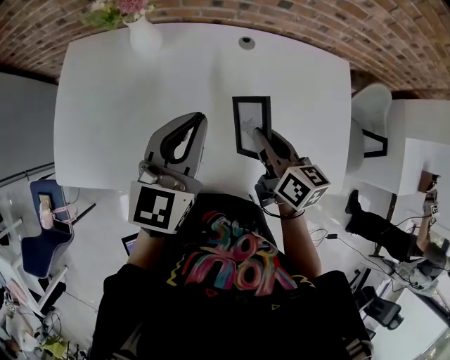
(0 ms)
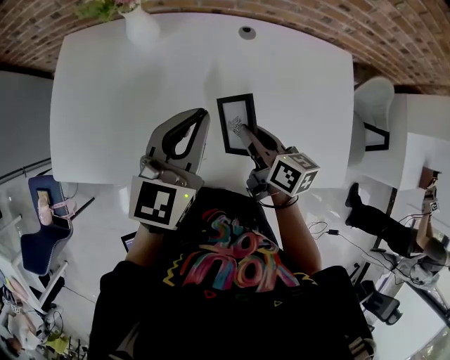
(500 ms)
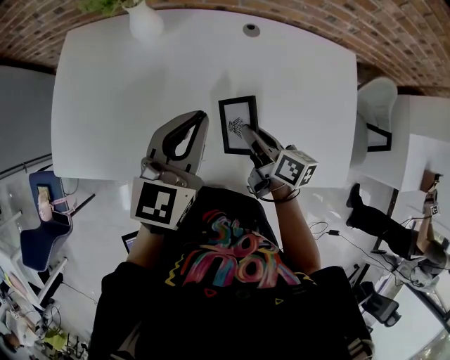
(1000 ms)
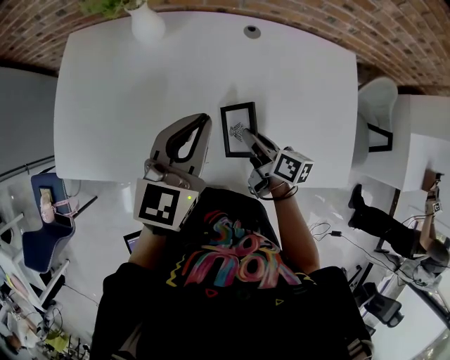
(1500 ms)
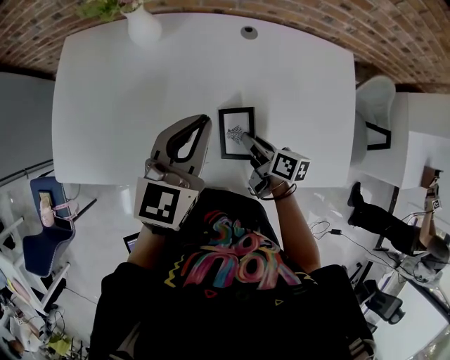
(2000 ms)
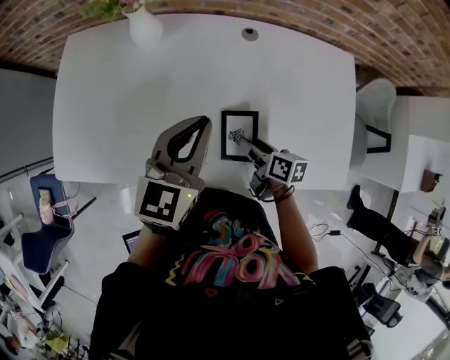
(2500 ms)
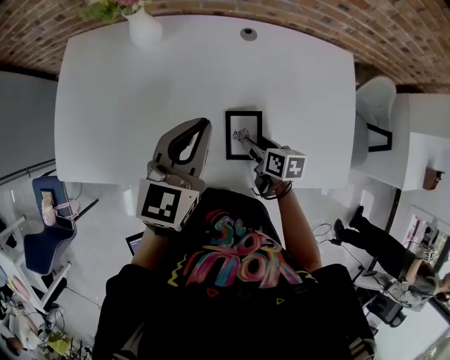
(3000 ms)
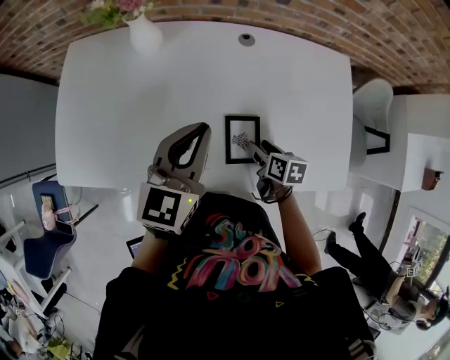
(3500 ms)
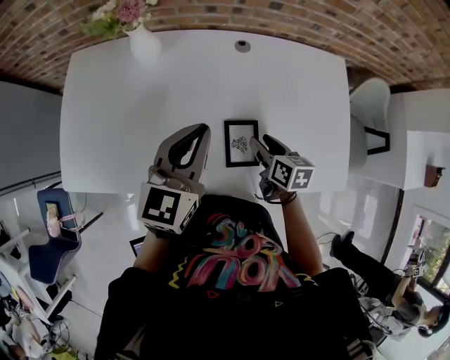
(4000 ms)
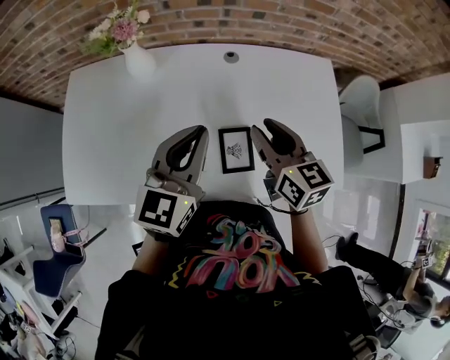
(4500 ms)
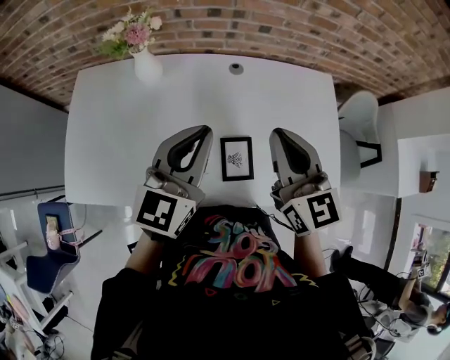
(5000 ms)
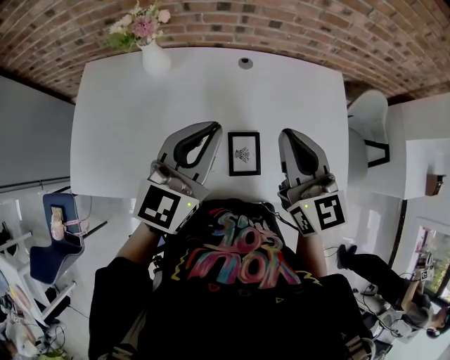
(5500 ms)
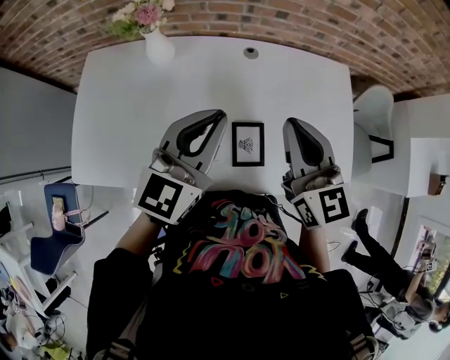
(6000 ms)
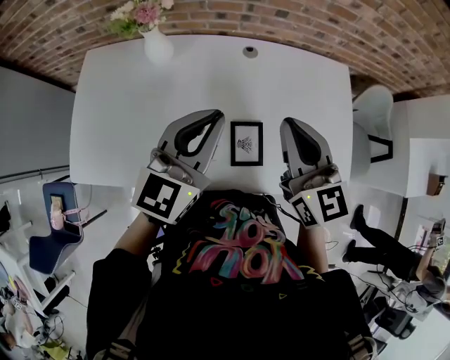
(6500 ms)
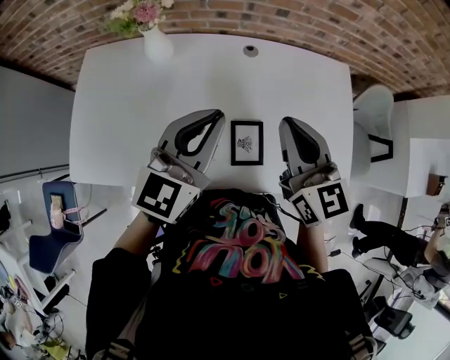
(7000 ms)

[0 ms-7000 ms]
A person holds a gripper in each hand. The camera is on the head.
0 ms to 2000 ms: The right gripper shifts about 15 cm downward, and changes its angle by about 20 degrees.
2000 ms to 3500 ms: The right gripper shifts by some 5 cm, turns by about 20 degrees, and opens.
3500 ms to 5000 ms: The left gripper heads upward, covering roughly 10 cm. Meanwhile the right gripper shifts some 35 cm upward, tilts its fingers roughly 40 degrees upward, and closes its fingers.
5000 ms to 7000 ms: The grippers stay close to where they were, moving slightly.

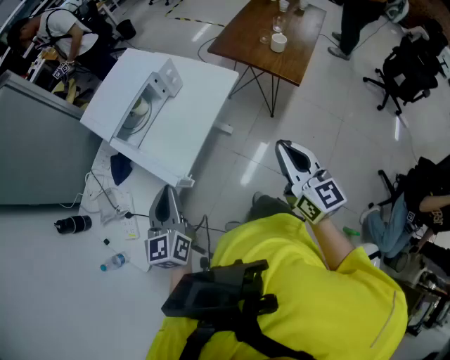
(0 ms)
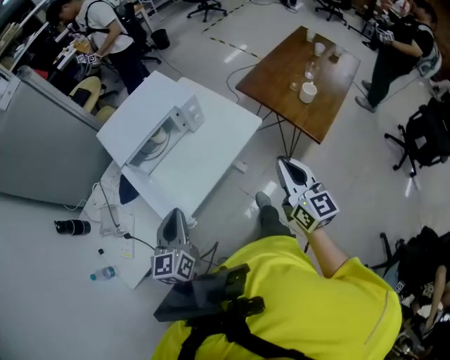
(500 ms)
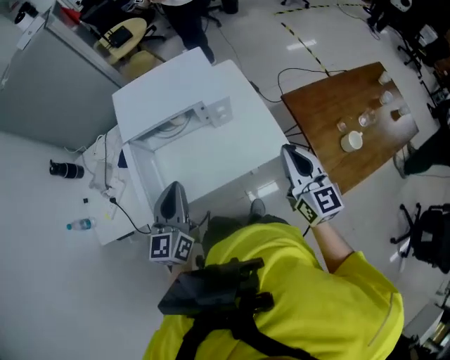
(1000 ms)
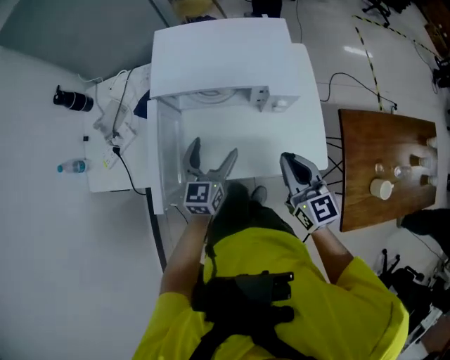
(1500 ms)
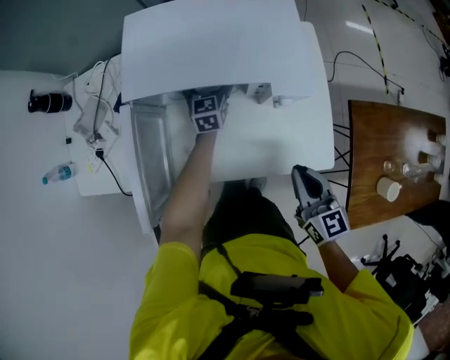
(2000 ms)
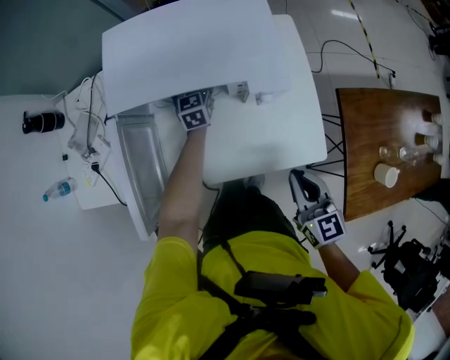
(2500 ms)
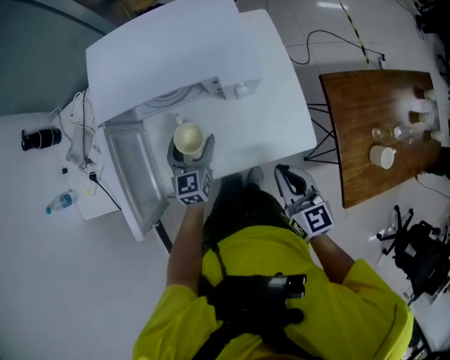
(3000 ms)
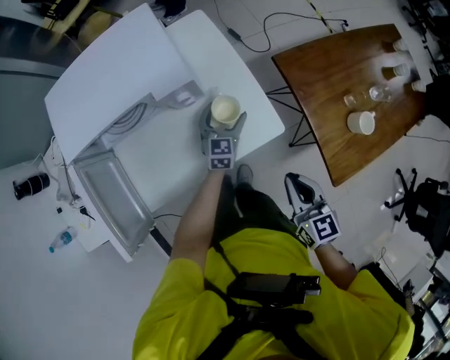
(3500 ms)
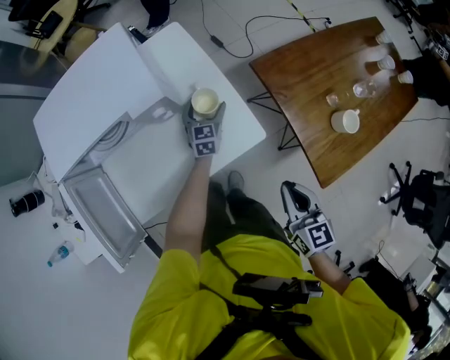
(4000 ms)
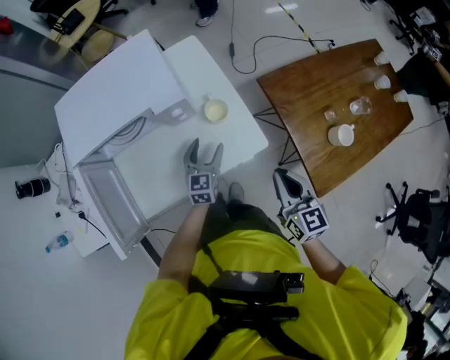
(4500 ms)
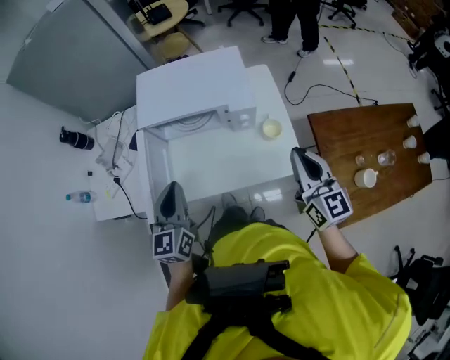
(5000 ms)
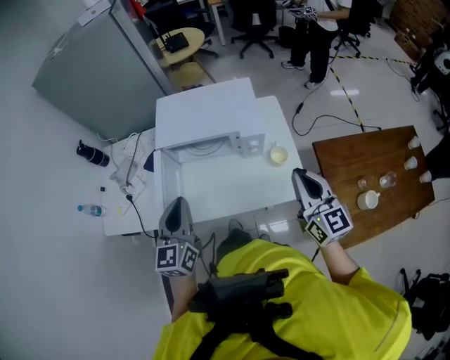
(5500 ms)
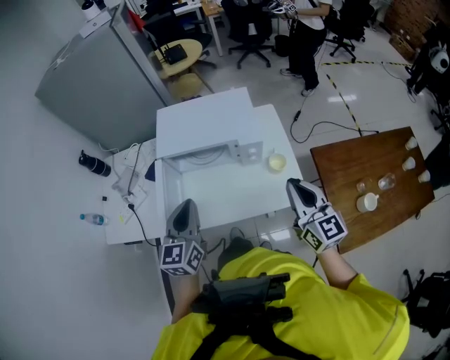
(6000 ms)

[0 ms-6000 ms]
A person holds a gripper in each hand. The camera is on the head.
0 ms to 2000 ms: Both grippers are carried approximately 50 cm. The right gripper changes its angle by some 60 degrees; the left gripper rotates approximately 50 degrees, and opens.
2000 ms to 4000 ms: The right gripper moves about 25 cm, and turns by approximately 30 degrees; the left gripper ends up some 35 cm from where it was, and changes its angle by some 30 degrees.
4000 ms to 6000 ms: The right gripper is displaced upward, to the left and forward by some 30 cm, and swivels roughly 40 degrees. The left gripper is displaced upward, to the left and backward by about 60 cm, swivels about 30 degrees, and closes its fingers.

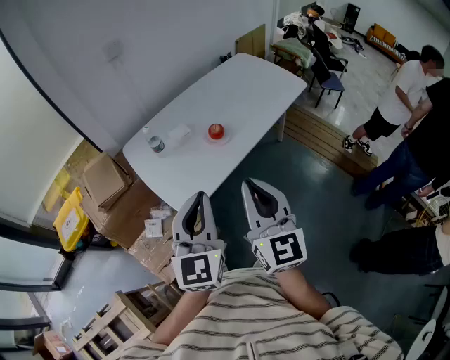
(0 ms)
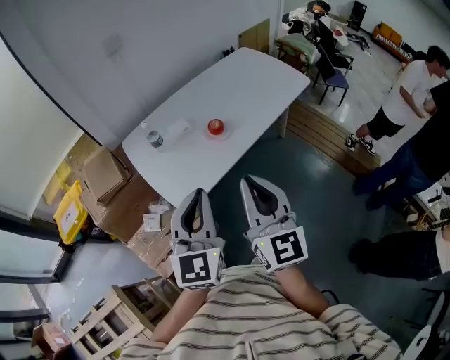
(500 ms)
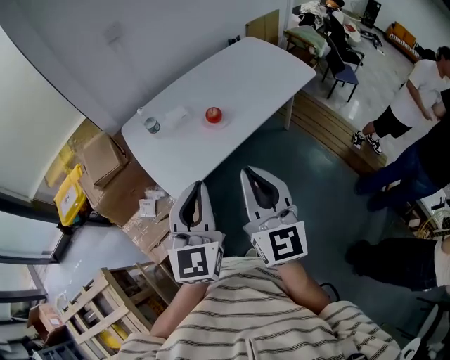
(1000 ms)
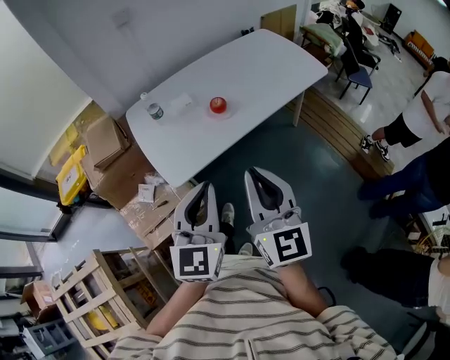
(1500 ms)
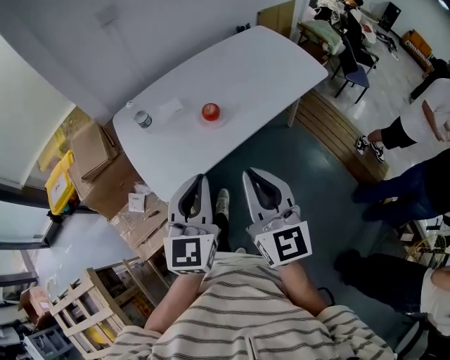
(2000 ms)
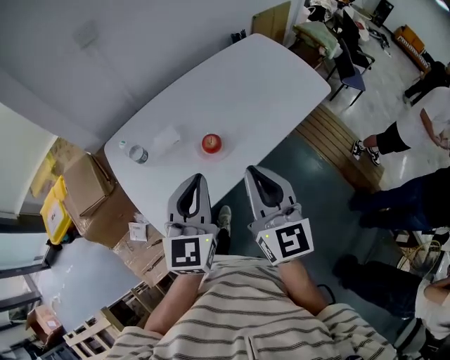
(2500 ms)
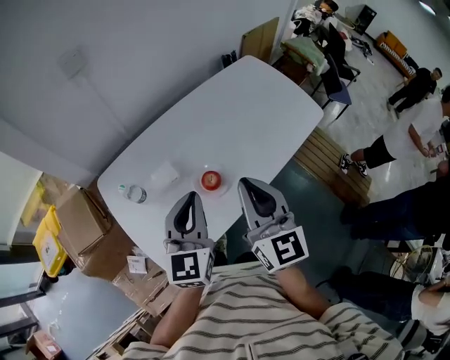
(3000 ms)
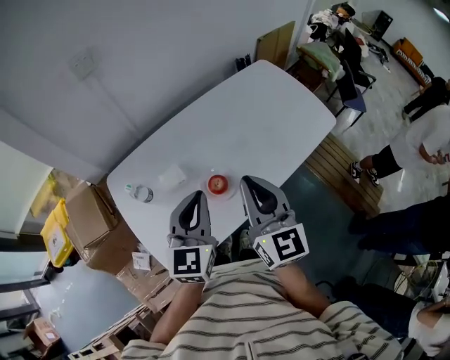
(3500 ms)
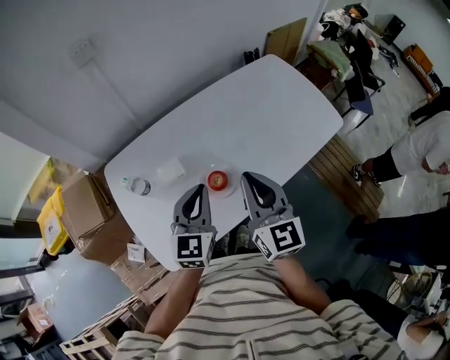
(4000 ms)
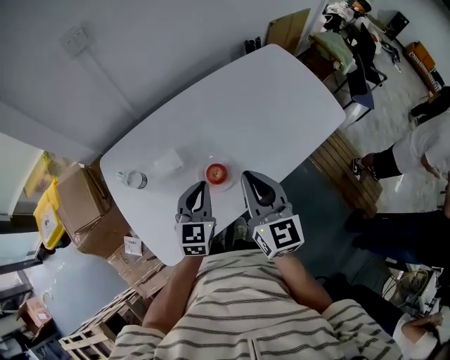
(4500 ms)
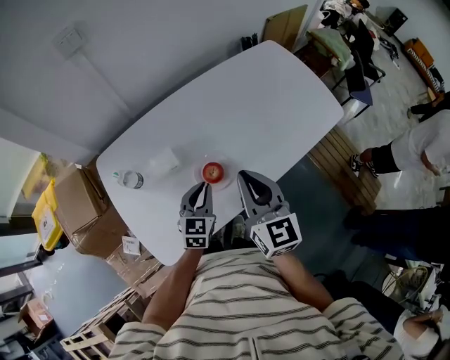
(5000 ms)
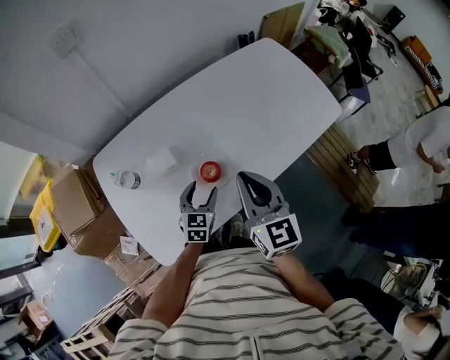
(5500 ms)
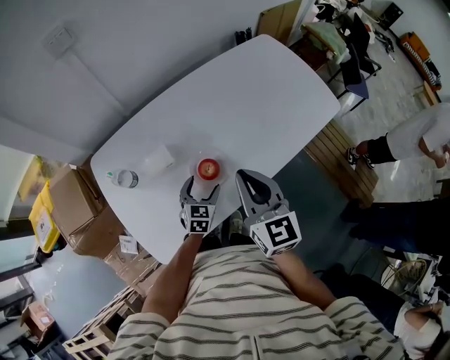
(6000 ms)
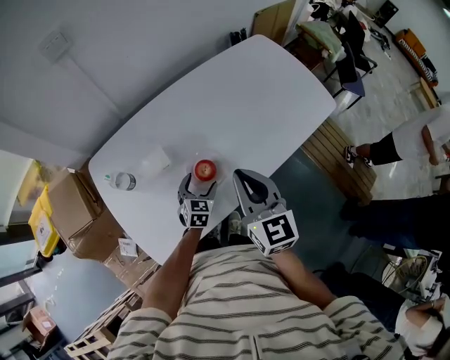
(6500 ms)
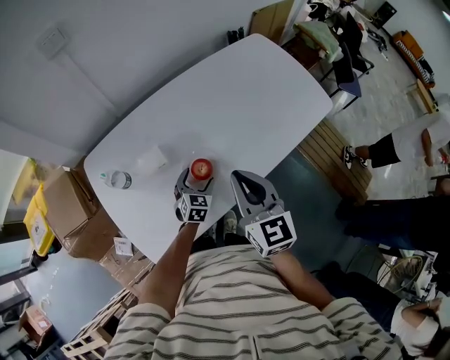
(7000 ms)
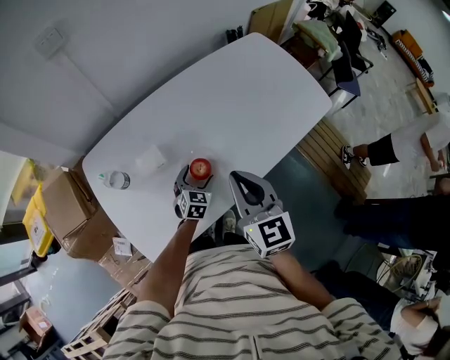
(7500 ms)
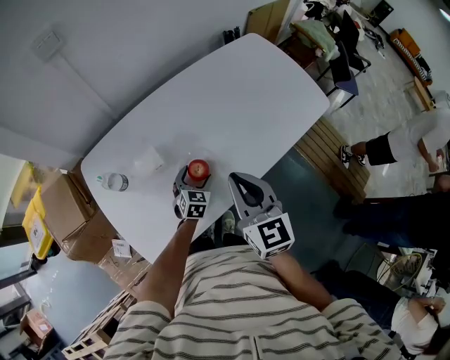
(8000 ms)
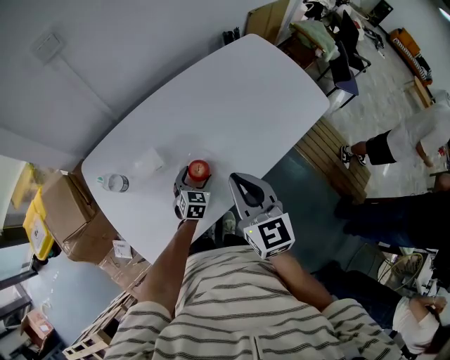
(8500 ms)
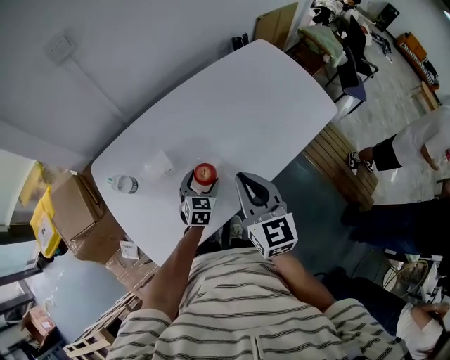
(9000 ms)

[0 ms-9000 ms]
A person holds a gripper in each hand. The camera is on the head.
0 ms to 2000 ms: The left gripper moves to the right, forward and downward, about 15 cm, while the right gripper travels to the right and forward by approximately 10 cm.
2000 ms to 4500 ms: The right gripper travels forward by about 30 cm; the left gripper shifts some 35 cm forward and downward.
4500 ms to 7000 ms: The left gripper goes some 20 cm downward, rotates about 20 degrees, and opens.
7000 ms to 9000 ms: There are only small adjustments of the grippers.

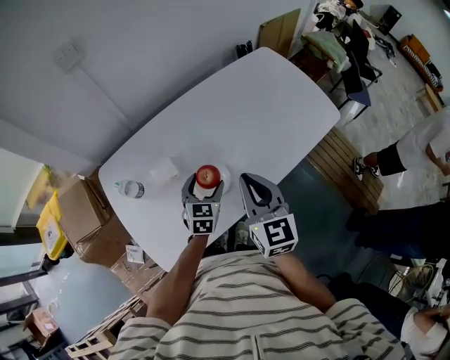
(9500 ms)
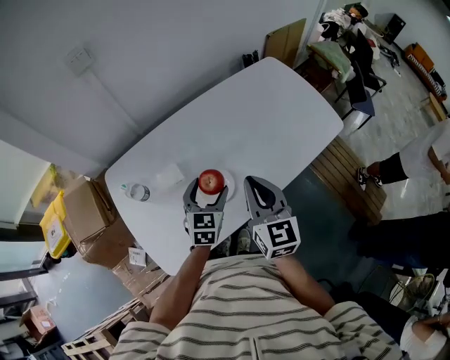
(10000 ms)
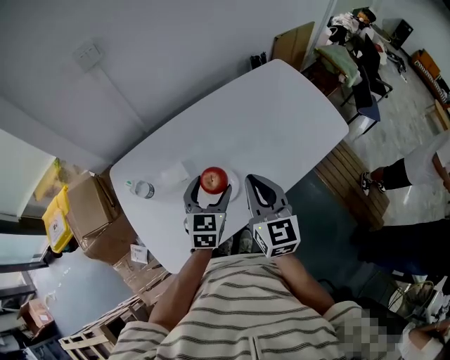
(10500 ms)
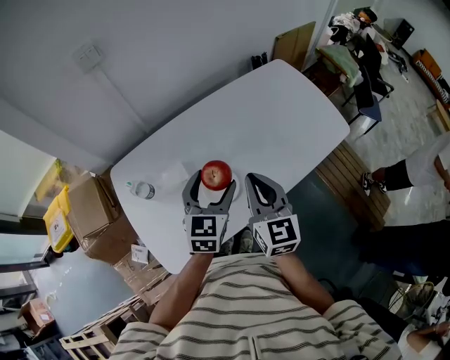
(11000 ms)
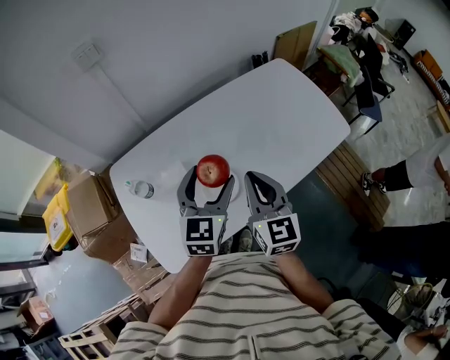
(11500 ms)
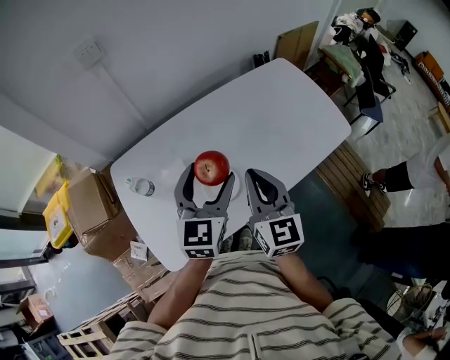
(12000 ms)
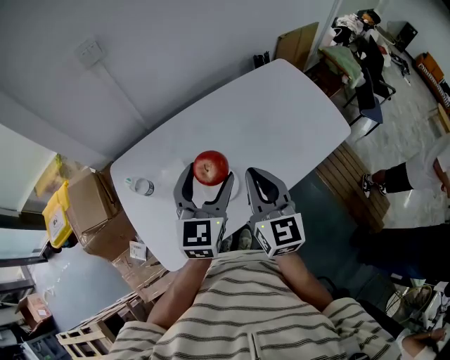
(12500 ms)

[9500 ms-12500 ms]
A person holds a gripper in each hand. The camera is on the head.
9500 ms to 11000 ms: The left gripper shifts roughly 15 cm upward.
11000 ms to 12500 ms: The left gripper travels upward by roughly 5 cm.

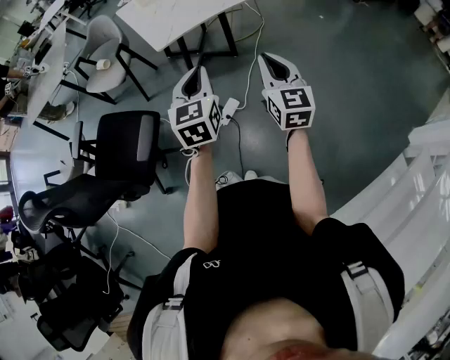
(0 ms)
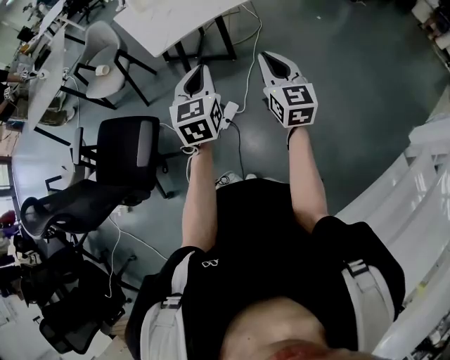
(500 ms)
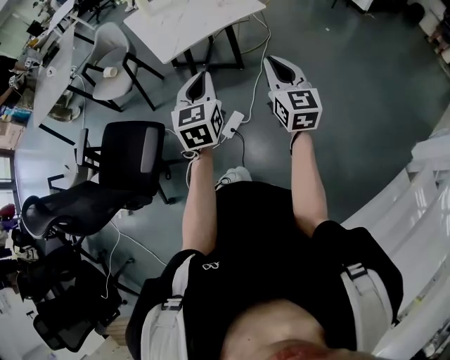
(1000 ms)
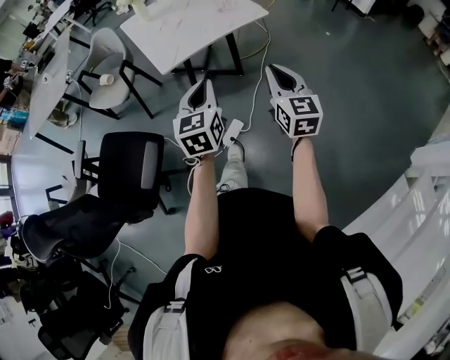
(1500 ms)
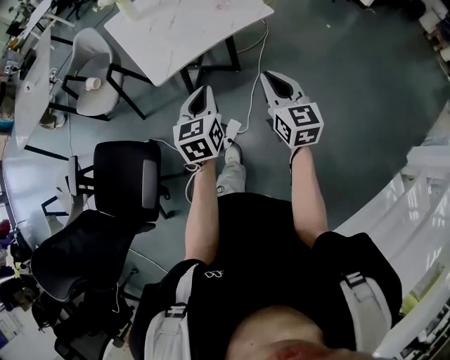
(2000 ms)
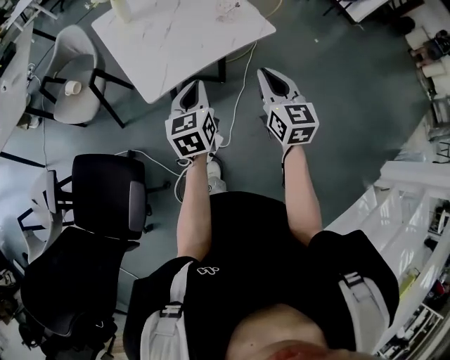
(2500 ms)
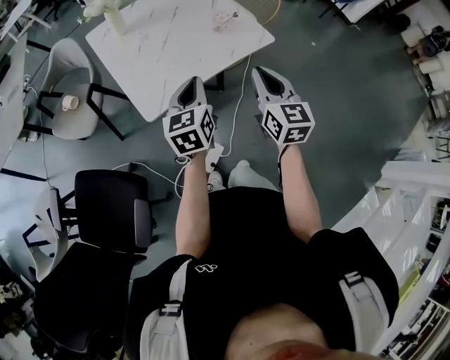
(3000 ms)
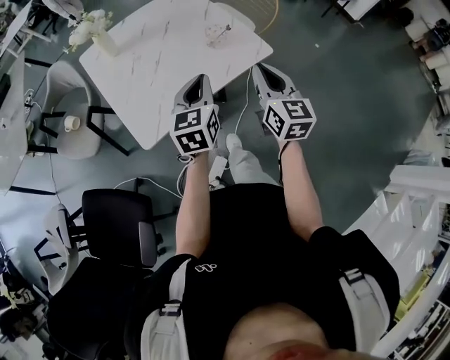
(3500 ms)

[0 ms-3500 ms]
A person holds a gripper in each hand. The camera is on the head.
0 ms to 2000 ms: The grippers both shift forward by about 20 cm.
2000 ms to 3500 ms: Both grippers move forward, approximately 25 cm.
